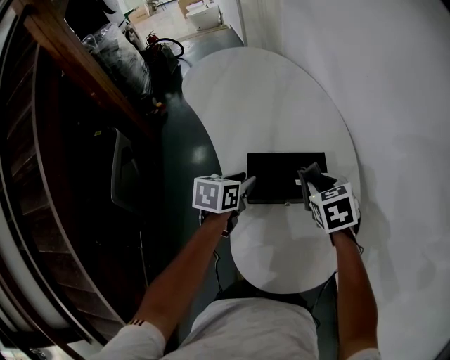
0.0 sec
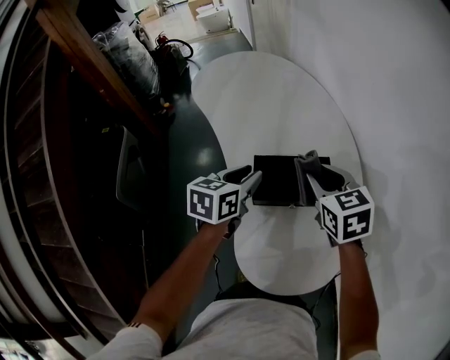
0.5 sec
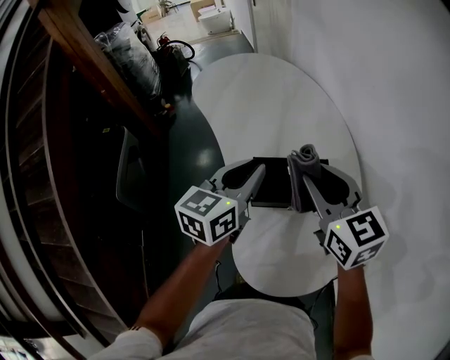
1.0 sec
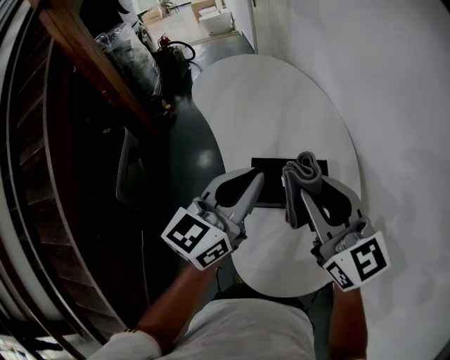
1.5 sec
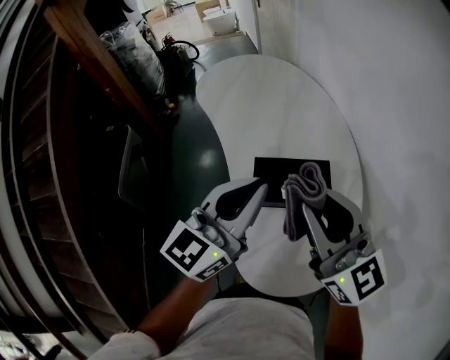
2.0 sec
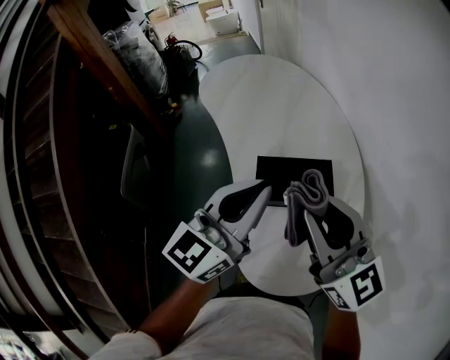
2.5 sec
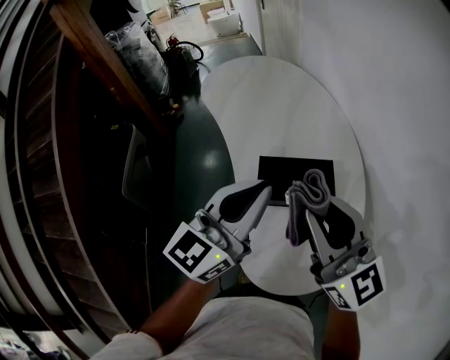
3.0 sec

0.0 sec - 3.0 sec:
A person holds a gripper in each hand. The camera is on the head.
0.0 sec - 1.5 sec: The right gripper travels upward and backward by about 20 cm, and angles its fingers upward, by roughly 50 degrees. The left gripper travels upward by some 20 cm, tips its fingers upward by approximately 40 degrees, and closes its fingers.
1.5 sec - 3.0 sec: The right gripper is displaced backward by approximately 5 cm. Meanwhile the left gripper shifts by approximately 5 cm.

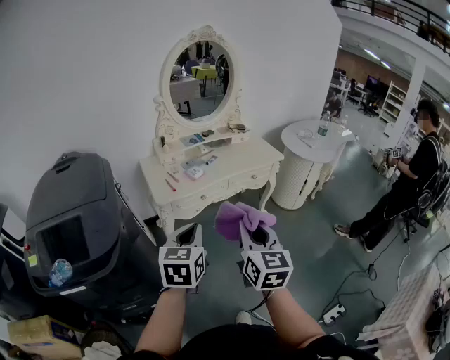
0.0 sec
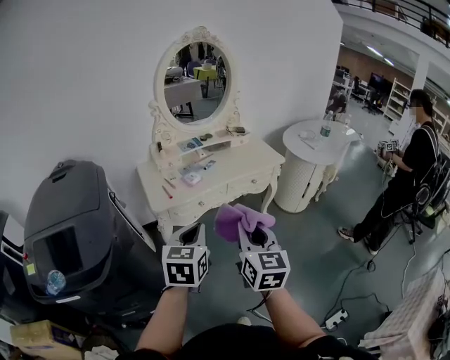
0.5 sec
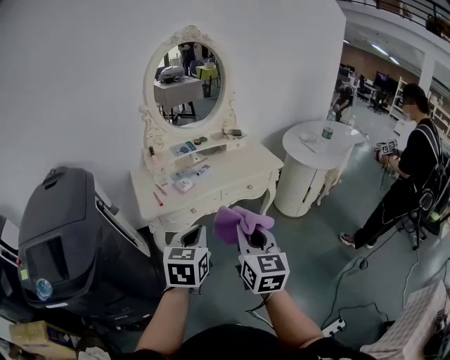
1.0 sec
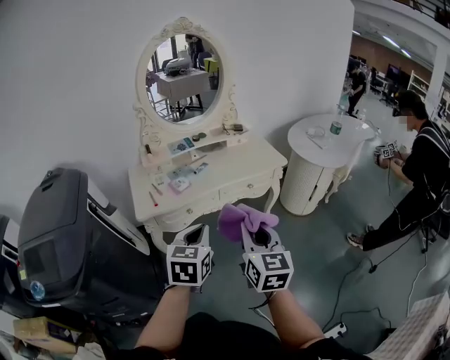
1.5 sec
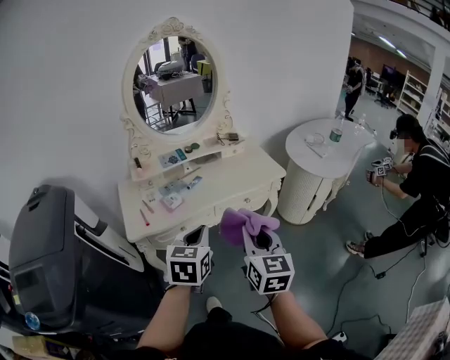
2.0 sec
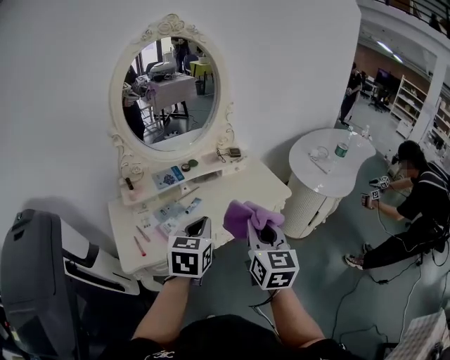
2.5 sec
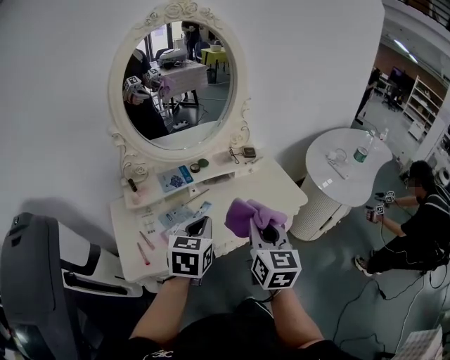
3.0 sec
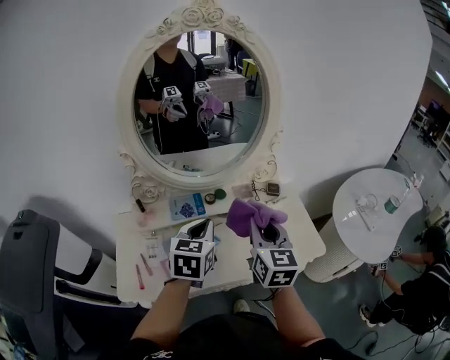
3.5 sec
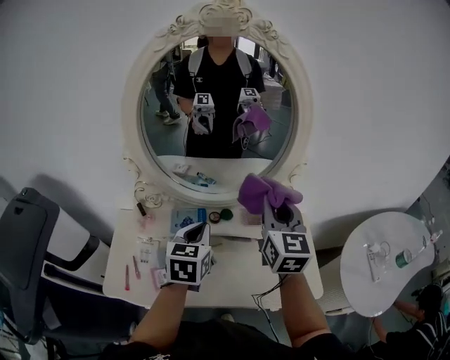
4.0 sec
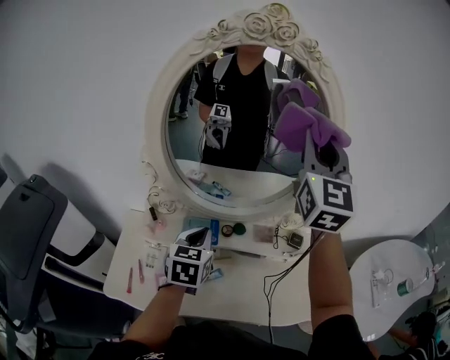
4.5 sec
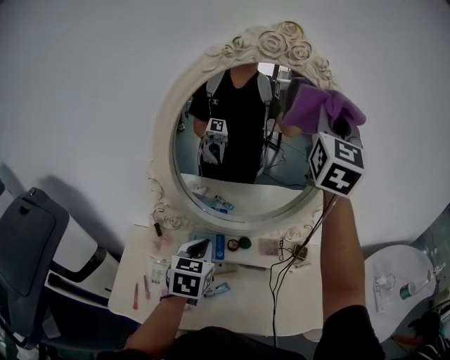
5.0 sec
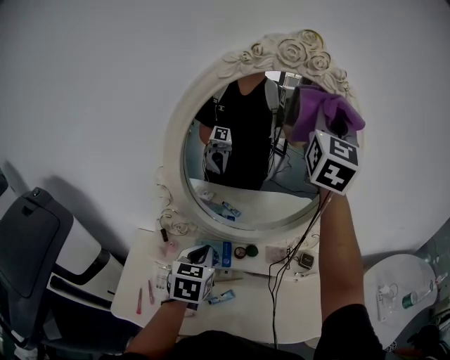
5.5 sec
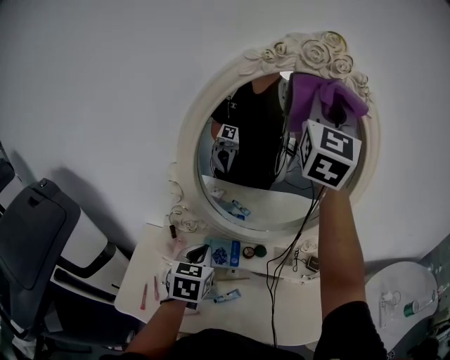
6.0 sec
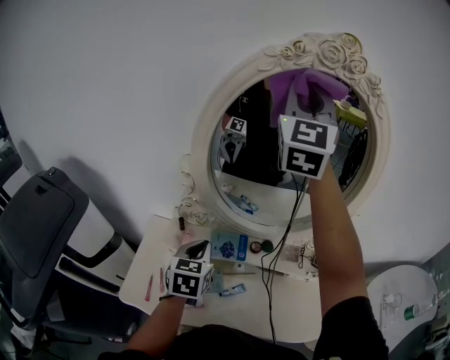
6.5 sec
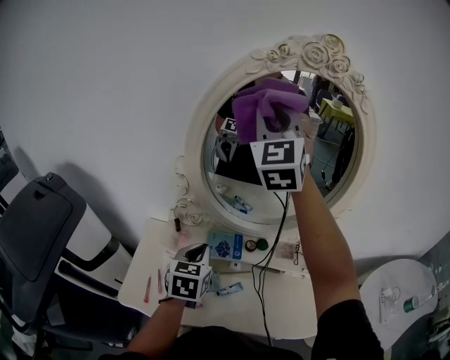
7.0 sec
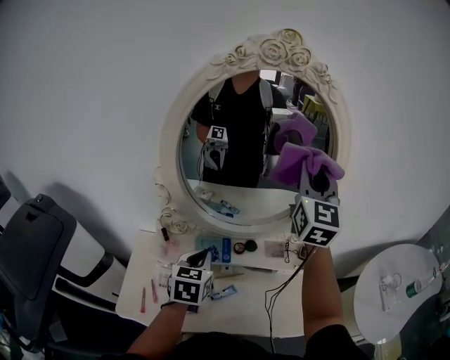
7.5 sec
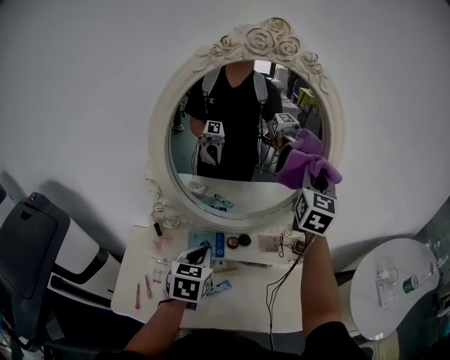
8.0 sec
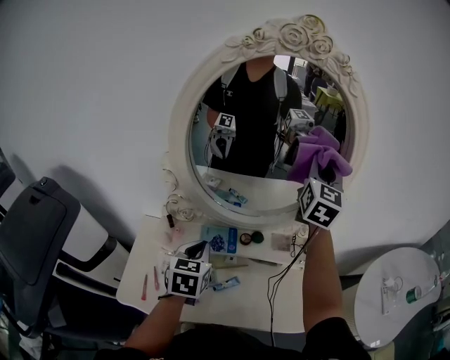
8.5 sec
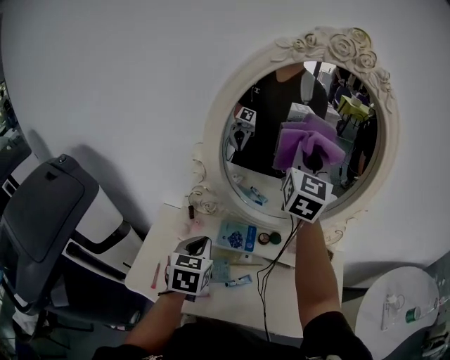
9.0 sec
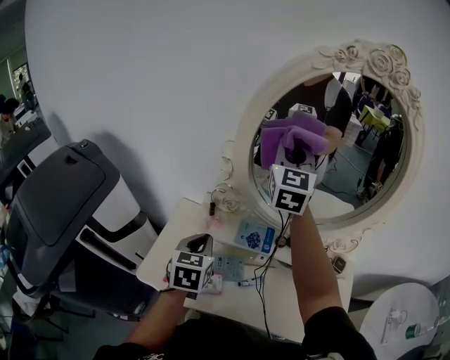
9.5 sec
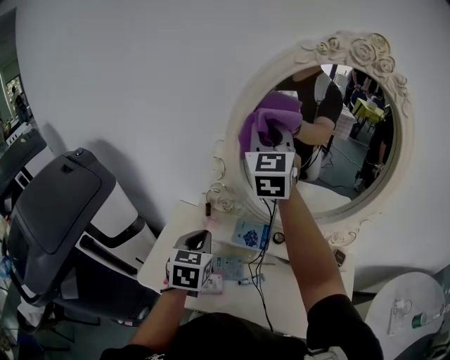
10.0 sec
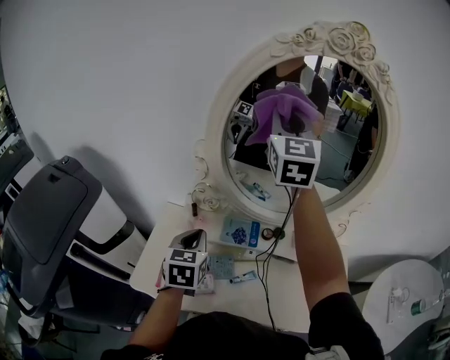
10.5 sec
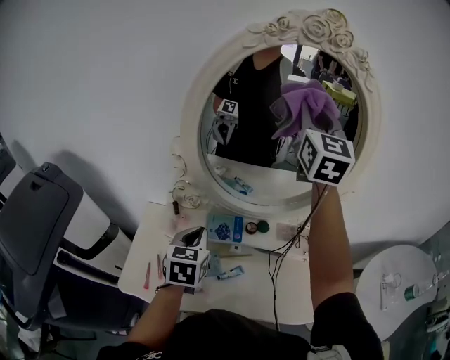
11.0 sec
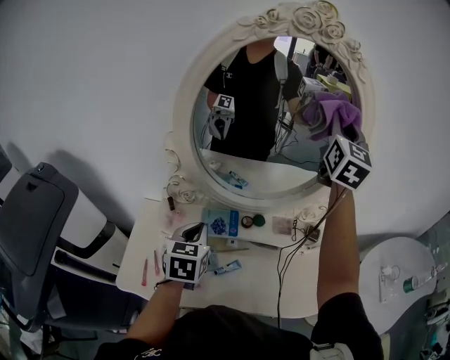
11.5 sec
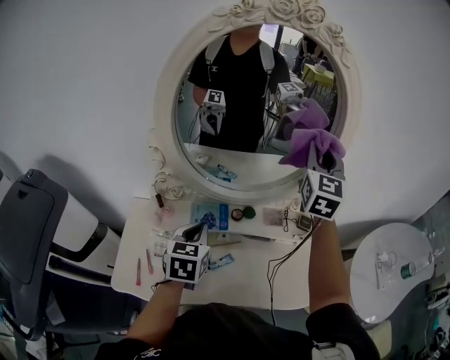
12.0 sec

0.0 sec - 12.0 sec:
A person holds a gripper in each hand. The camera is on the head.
0.0 sec - 2.0 sec: Both grippers move forward and to the right, about 30 cm.
2.0 sec - 4.0 sec: The two grippers travel together, about 50 cm. The right gripper rotates some 20 degrees, while the left gripper rotates some 20 degrees.
4.0 sec - 6.0 sec: The right gripper moves upward and forward, about 35 cm, and changes its angle by about 30 degrees. Meanwhile the left gripper is displaced to the left by approximately 15 cm.
6.0 sec - 8.0 sec: The right gripper heads downward and to the right, covering approximately 25 cm, and changes its angle by roughly 20 degrees, while the left gripper moves to the right, roughly 5 cm.
8.0 sec - 10.0 sec: The left gripper shifts by some 15 cm. The right gripper changes place by some 40 cm, and rotates some 30 degrees.
10.0 sec - 12.0 sec: The right gripper shifts roughly 35 cm to the right, and turns by some 30 degrees. The left gripper shifts some 15 cm to the right.

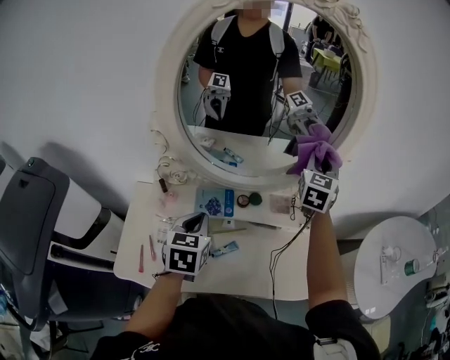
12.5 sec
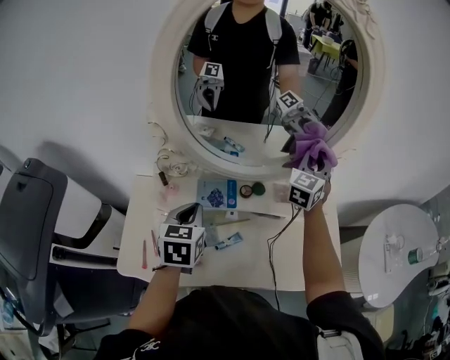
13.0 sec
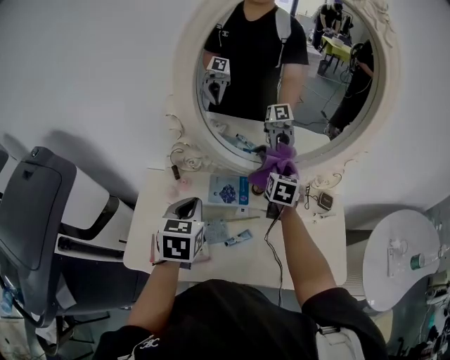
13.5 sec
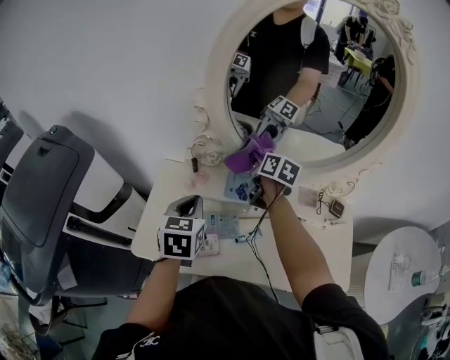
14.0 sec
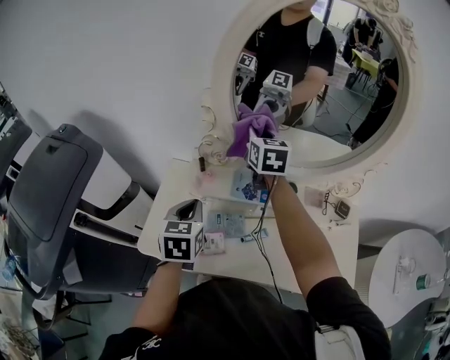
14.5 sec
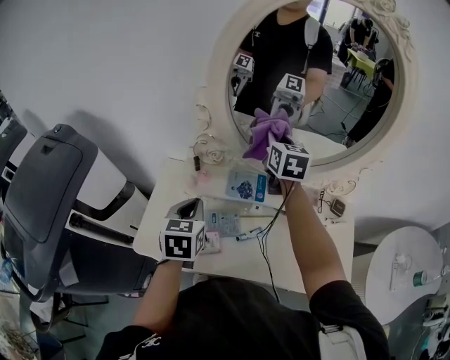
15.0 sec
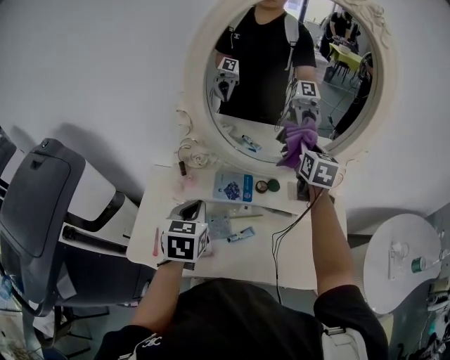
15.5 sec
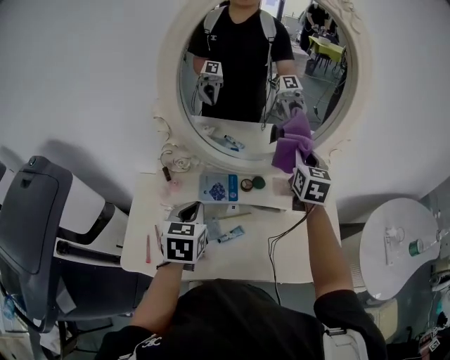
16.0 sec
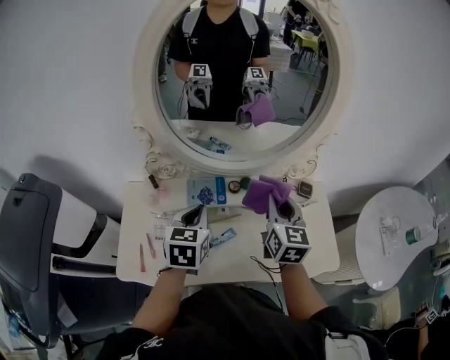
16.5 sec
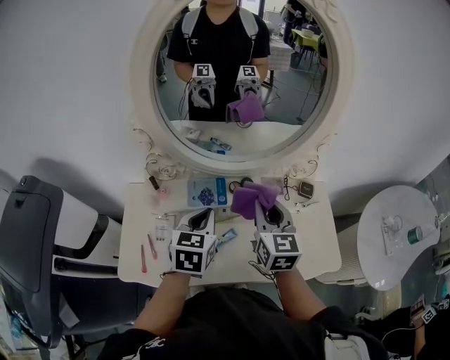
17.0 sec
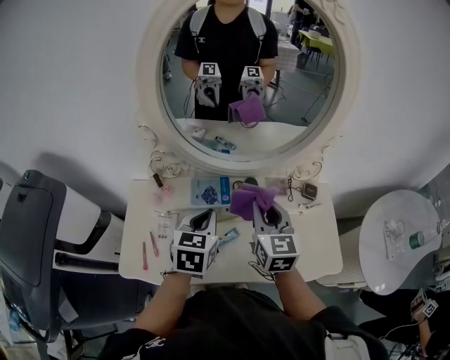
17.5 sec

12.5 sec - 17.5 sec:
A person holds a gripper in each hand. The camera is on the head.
12.5 sec - 15.0 sec: The right gripper goes downward and returns, roughly 20 cm each way, and turns by some 40 degrees, while the left gripper ends up approximately 10 cm from where it was.
15.0 sec - 17.5 sec: The left gripper goes approximately 15 cm to the right. Meanwhile the right gripper moves backward and to the right, approximately 20 cm.

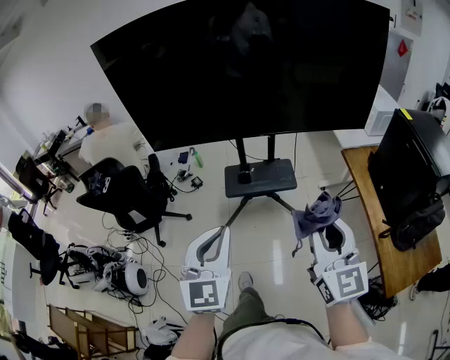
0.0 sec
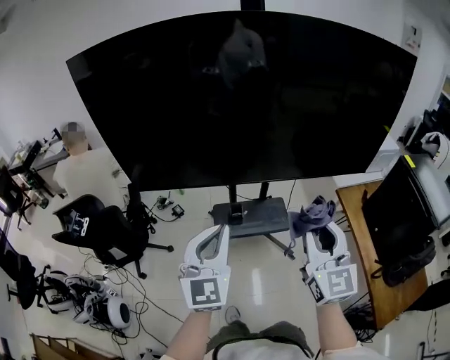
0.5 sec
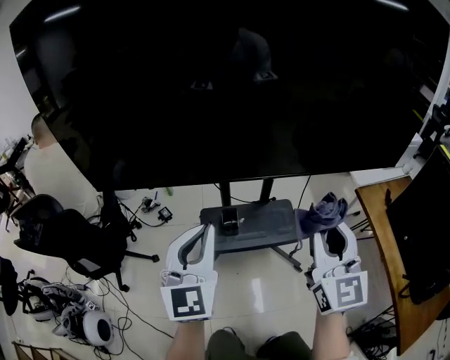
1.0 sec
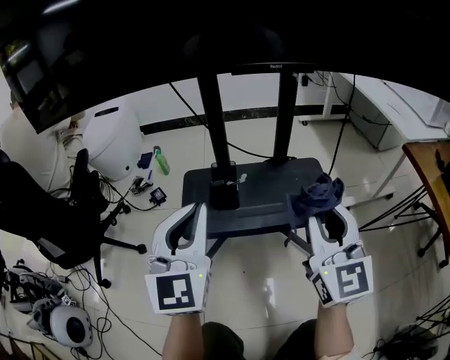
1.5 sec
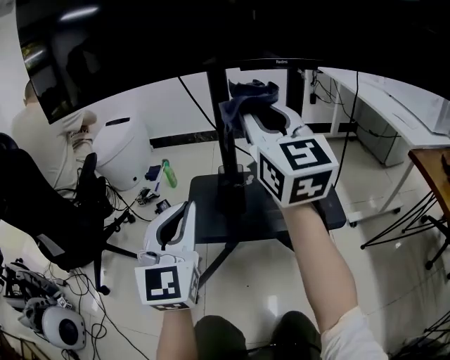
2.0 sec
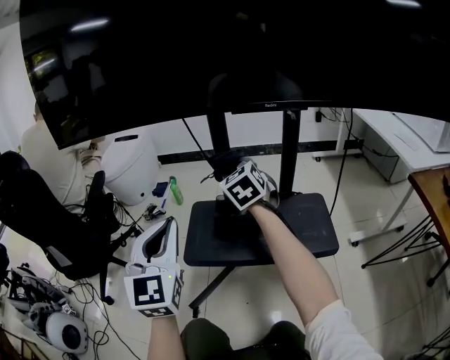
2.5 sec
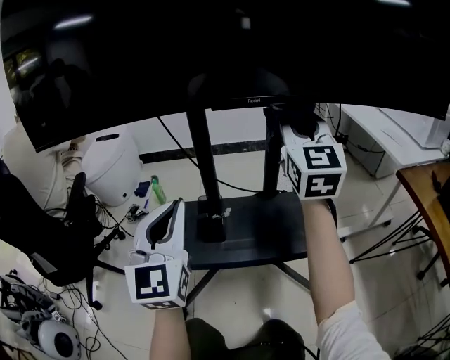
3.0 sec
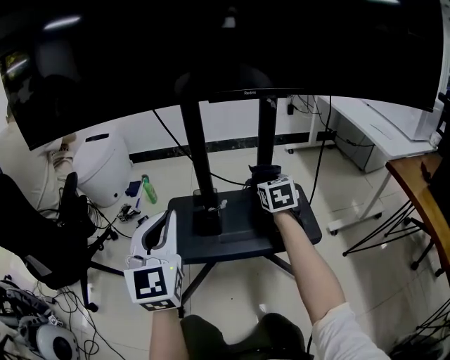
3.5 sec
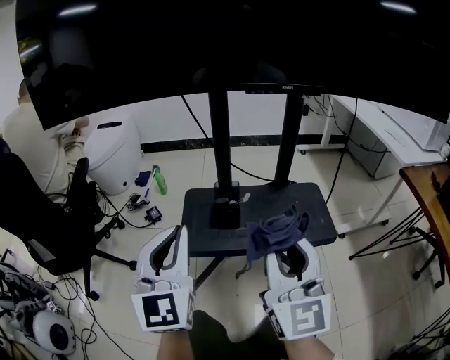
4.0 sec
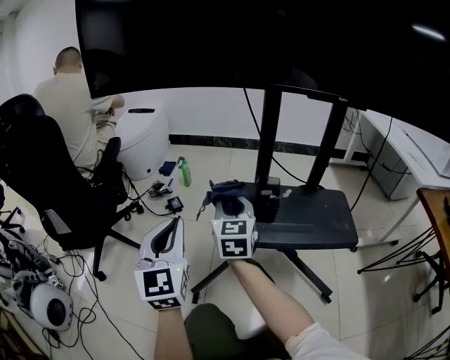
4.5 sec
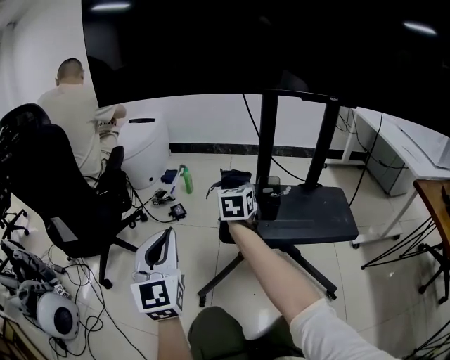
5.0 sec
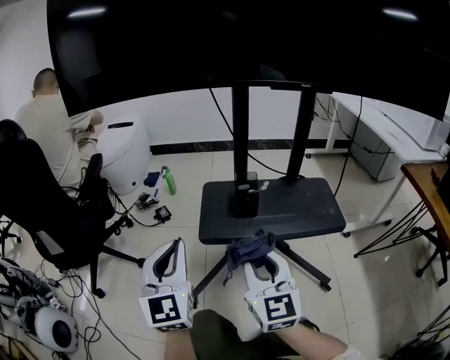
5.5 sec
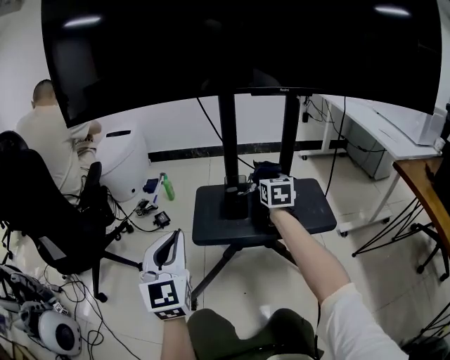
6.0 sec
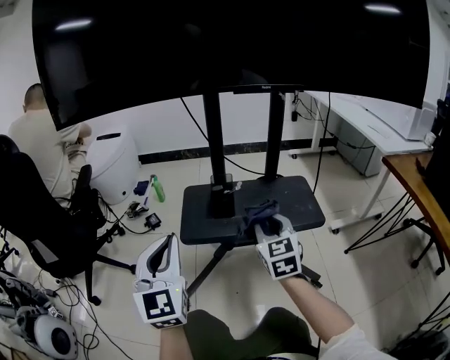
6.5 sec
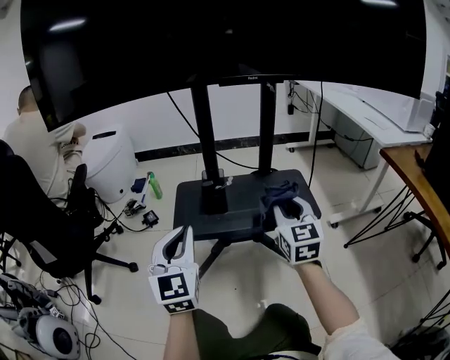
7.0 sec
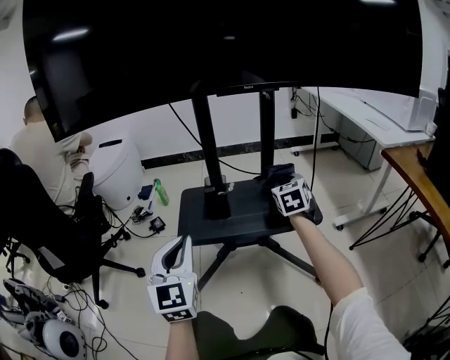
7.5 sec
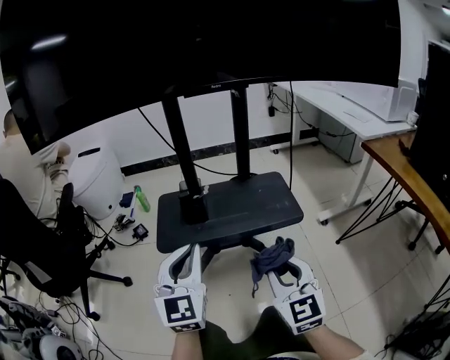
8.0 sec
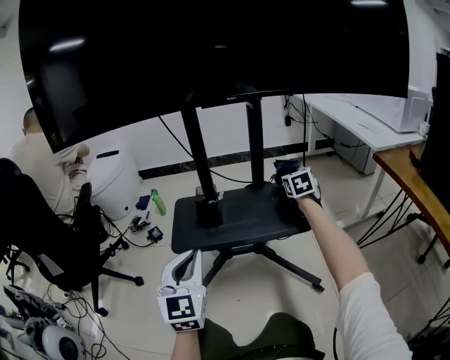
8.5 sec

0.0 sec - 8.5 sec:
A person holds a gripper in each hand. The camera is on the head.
0.0 sec - 2.0 sec: Both grippers are carried forward, approximately 70 cm. Both grippers move downward, approximately 60 cm.
2.0 sec - 4.0 sec: The right gripper moves forward and backward over some 30 cm, changing direction 3 times.
4.0 sec - 6.5 sec: The left gripper goes roughly 5 cm downward, and reaches roughly 15 cm to the left, then returns. Meanwhile the right gripper swings forward and backward, approximately 30 cm each way, with 3 reversals, and tilts its fingers some 30 degrees downward.
6.5 sec - 8.5 sec: The left gripper heads to the right, covering some 10 cm, while the right gripper moves forward and backward over approximately 35 cm, changing direction 2 times.
